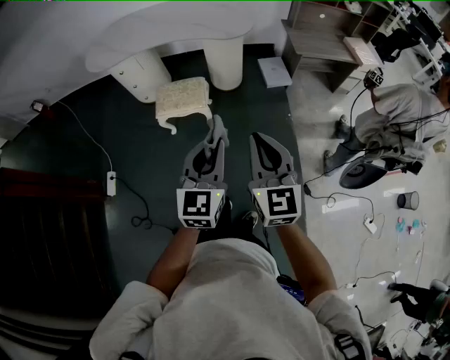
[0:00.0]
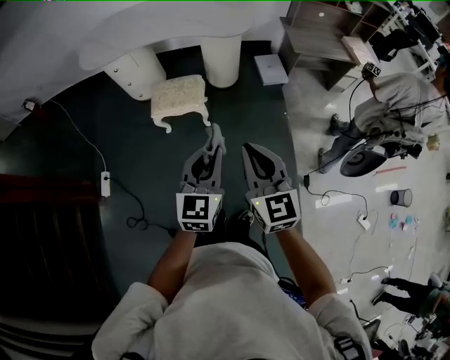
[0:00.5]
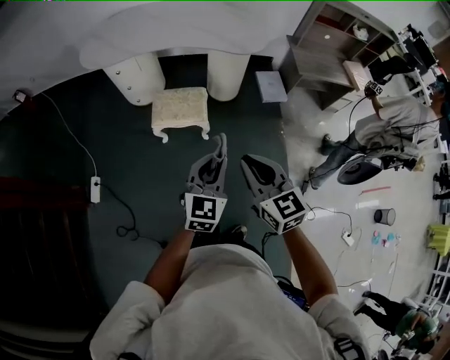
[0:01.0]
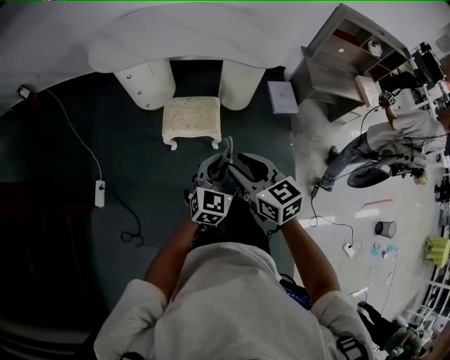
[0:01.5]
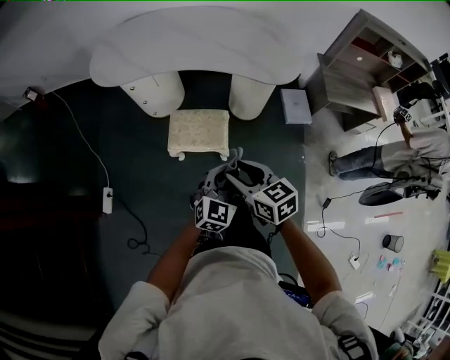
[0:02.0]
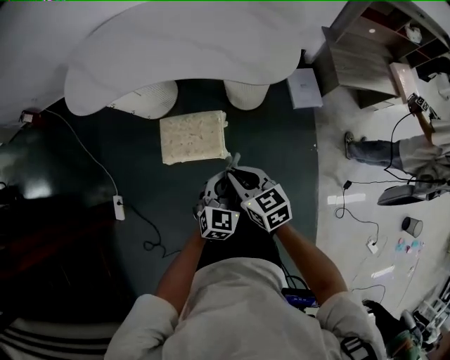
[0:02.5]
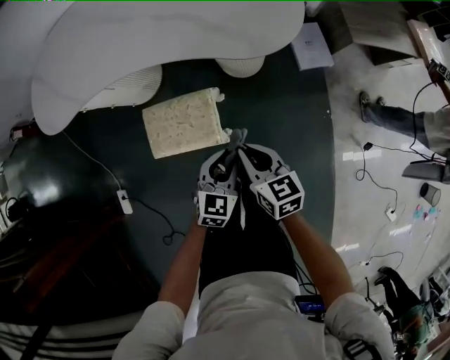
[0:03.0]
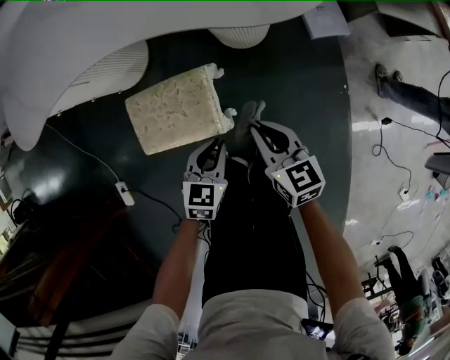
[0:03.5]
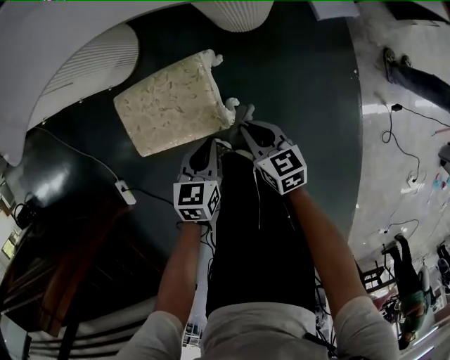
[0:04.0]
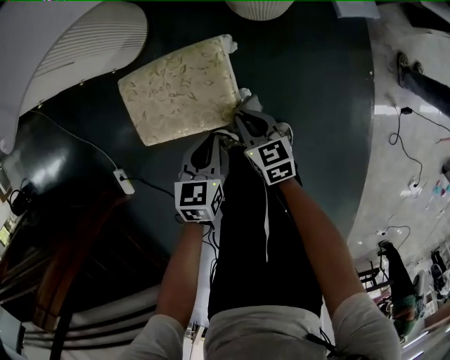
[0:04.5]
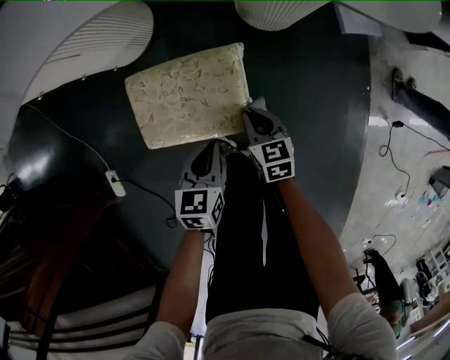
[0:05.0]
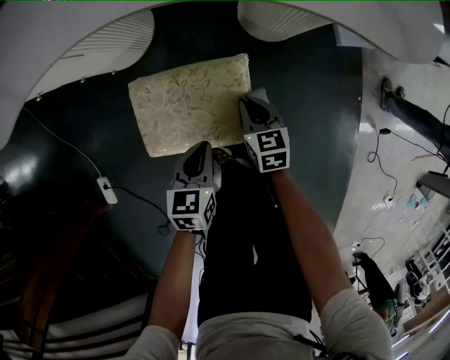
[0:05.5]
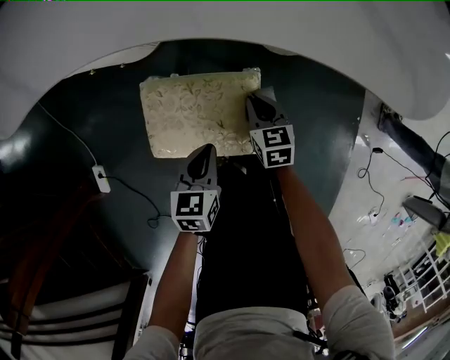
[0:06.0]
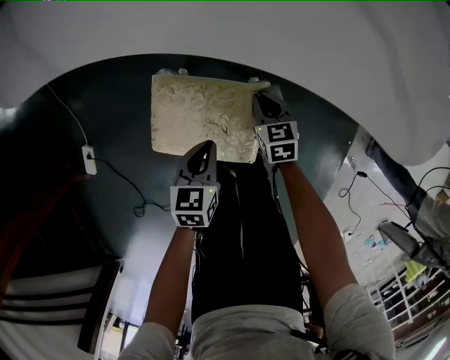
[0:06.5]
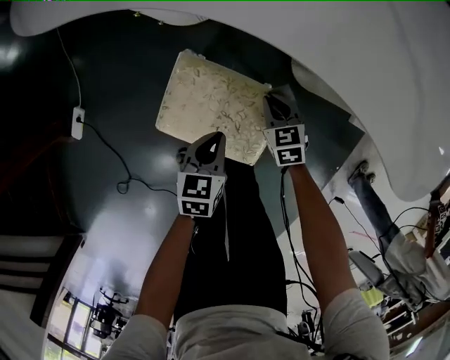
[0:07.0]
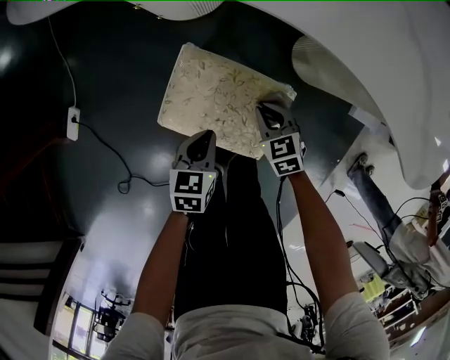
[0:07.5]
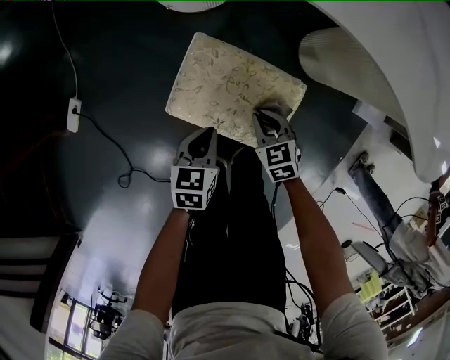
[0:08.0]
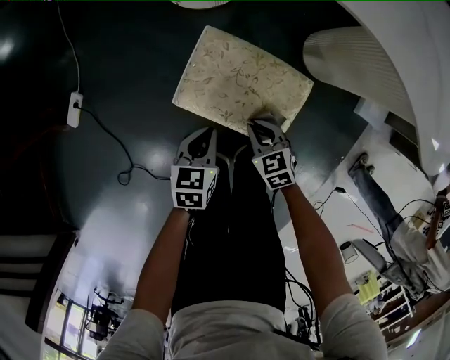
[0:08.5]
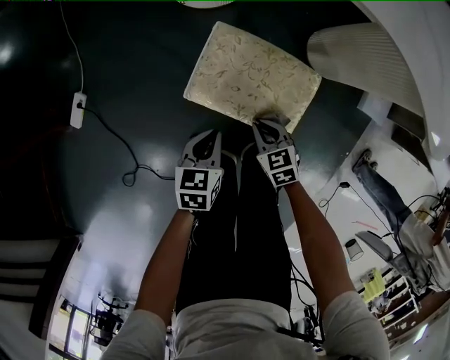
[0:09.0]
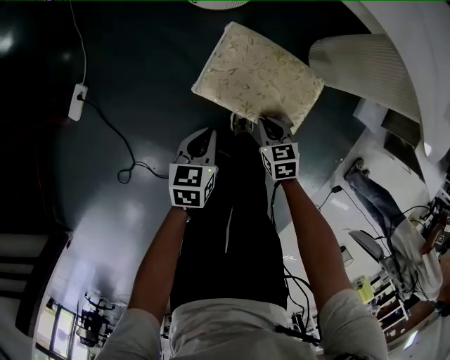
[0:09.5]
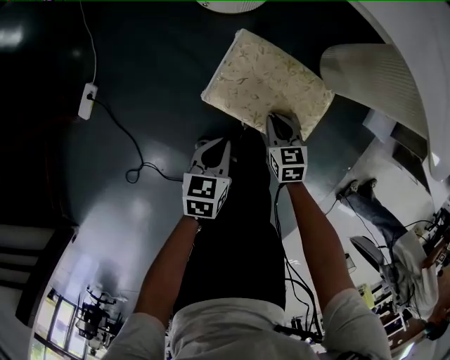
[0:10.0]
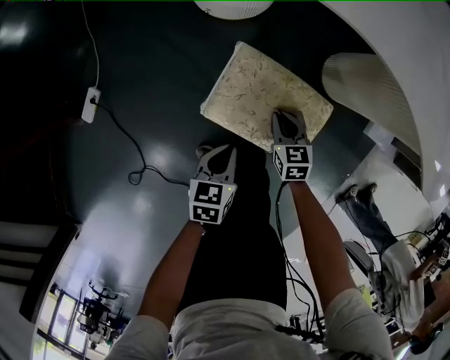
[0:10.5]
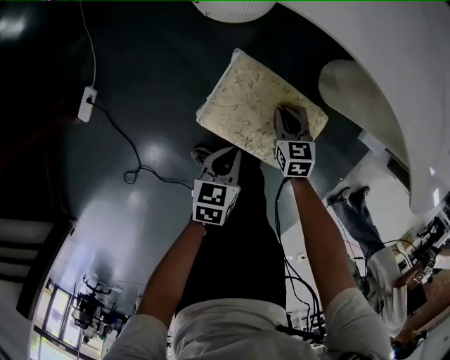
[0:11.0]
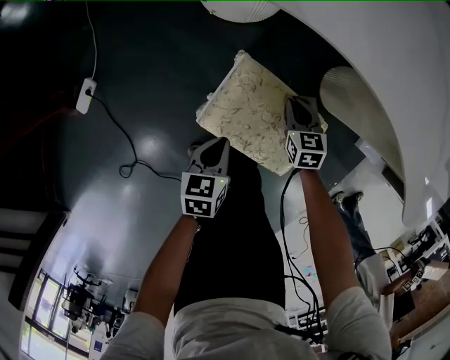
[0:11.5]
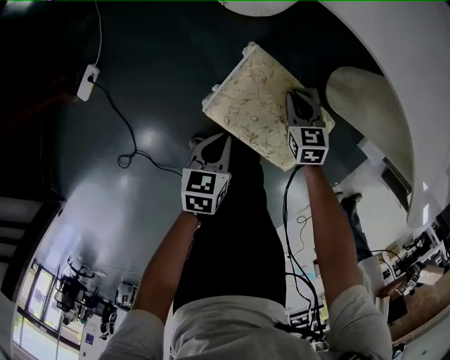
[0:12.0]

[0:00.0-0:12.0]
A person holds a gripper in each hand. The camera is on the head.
0:00.0 to 0:02.0: The right gripper travels forward, to the left and downward by approximately 40 cm, swivels about 40 degrees, and opens its fingers. The left gripper goes some 35 cm forward and downward.
0:02.0 to 0:04.0: The grippers both shift downward and forward by approximately 50 cm. The left gripper rotates roughly 40 degrees. Meanwhile the right gripper turns by about 20 degrees, and closes up.
0:04.0 to 0:06.0: The right gripper travels forward and to the left by some 20 cm; the left gripper goes about 15 cm to the left and forward.
0:06.0 to 0:08.0: The left gripper moves to the left, approximately 10 cm. The right gripper shifts some 10 cm to the left and backward, and swivels some 40 degrees.
0:08.0 to 0:10.0: The right gripper heads to the left, covering roughly 5 cm. Meanwhile the left gripper moves to the left and backward, about 10 cm.
0:10.0 to 0:12.0: The left gripper heads forward, covering about 5 cm; the right gripper travels forward by about 15 cm.

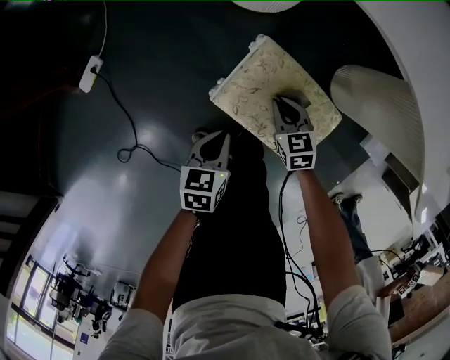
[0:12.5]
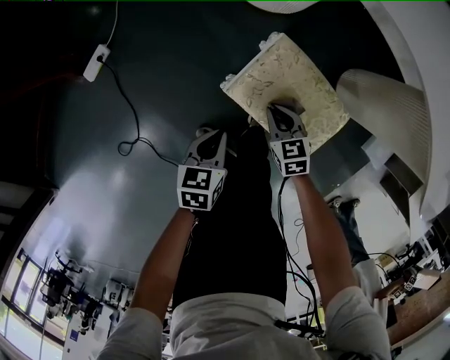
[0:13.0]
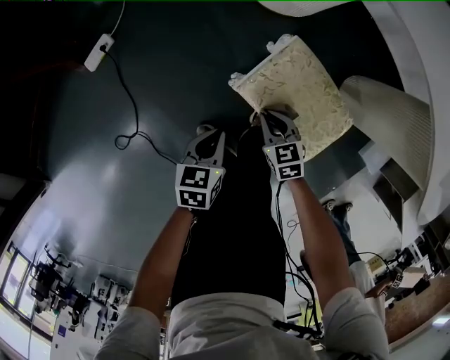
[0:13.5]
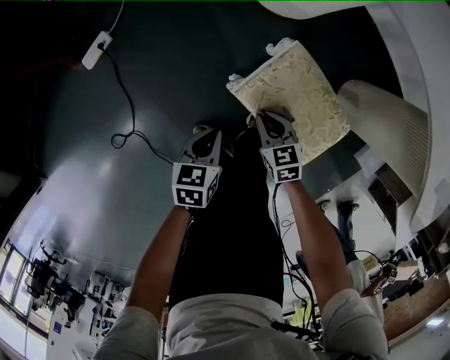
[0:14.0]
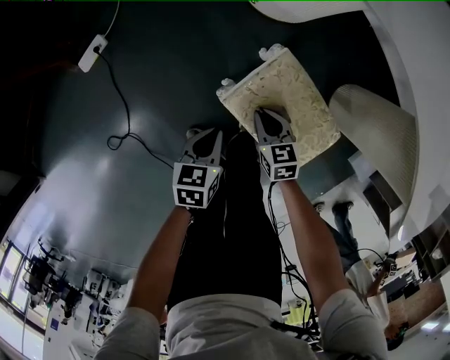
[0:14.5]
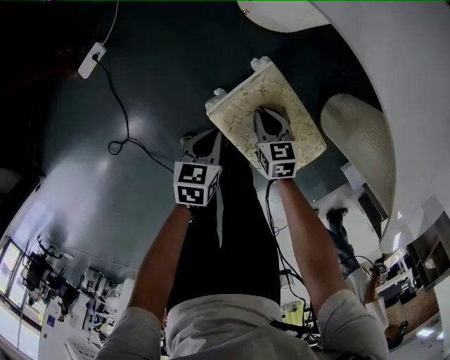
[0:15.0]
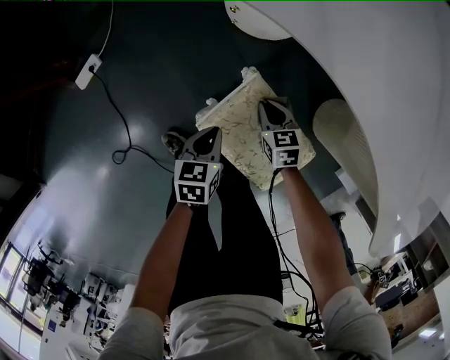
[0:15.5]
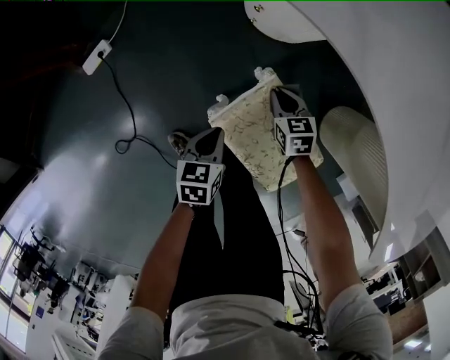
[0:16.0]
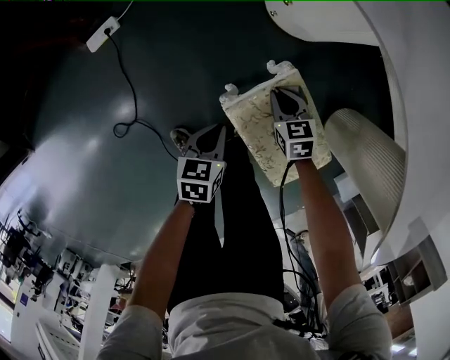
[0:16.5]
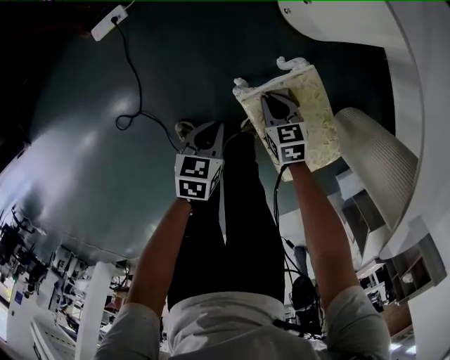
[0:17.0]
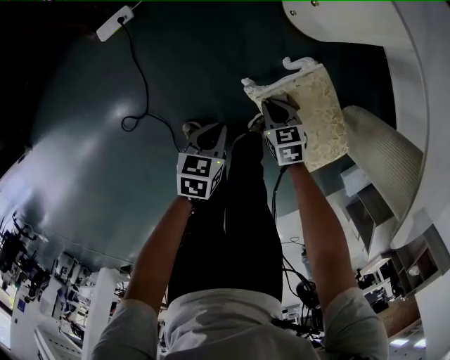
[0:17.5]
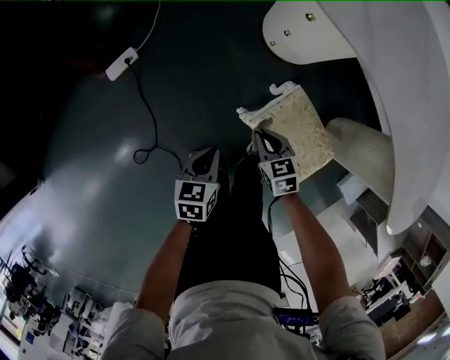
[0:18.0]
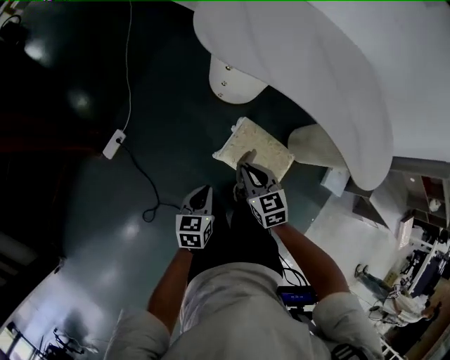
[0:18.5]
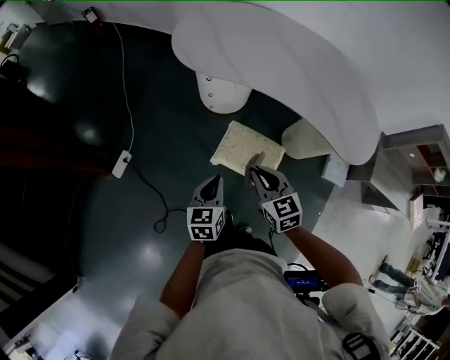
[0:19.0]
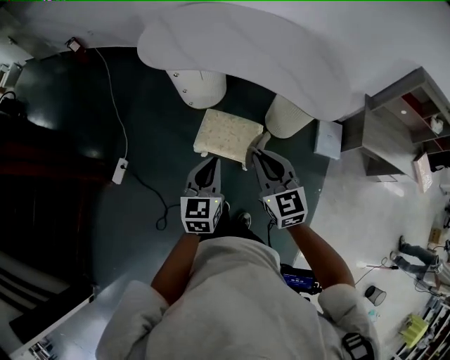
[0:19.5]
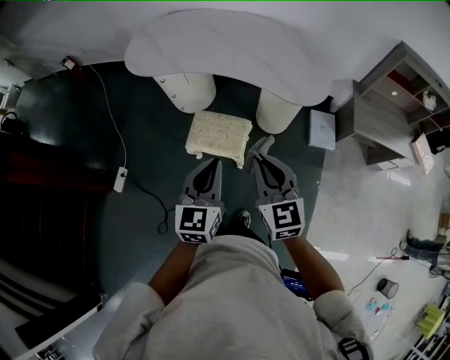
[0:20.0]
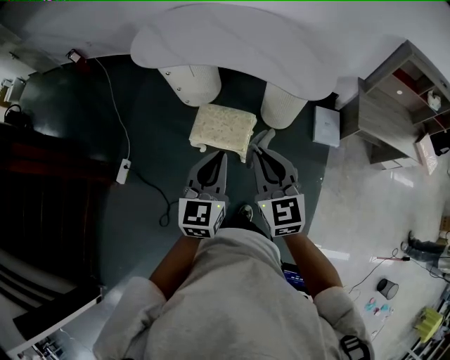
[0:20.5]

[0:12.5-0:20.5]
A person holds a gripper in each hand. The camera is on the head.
0:12.5 to 0:14.5: The right gripper shifts about 10 cm to the left.
0:14.5 to 0:16.5: The right gripper shifts approximately 10 cm forward.
0:16.5 to 0:18.5: The grippers both shift upward by about 35 cm. The right gripper changes its angle by some 20 degrees; the left gripper rotates approximately 20 degrees.
0:18.5 to 0:20.5: The left gripper moves to the right, upward and backward, some 40 cm, and changes its angle by approximately 40 degrees. Meanwhile the right gripper goes some 50 cm to the right, backward and upward, and swivels roughly 40 degrees.

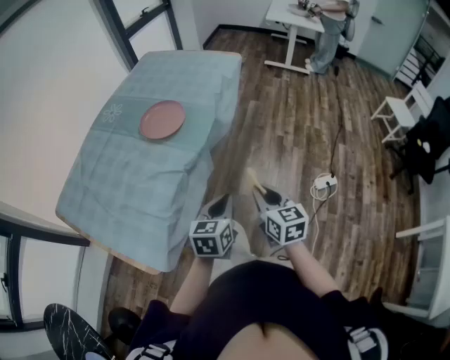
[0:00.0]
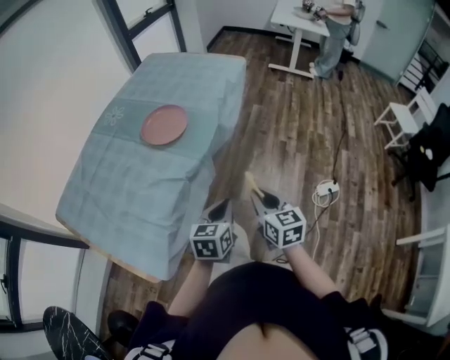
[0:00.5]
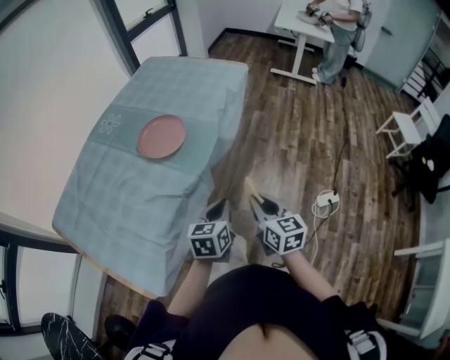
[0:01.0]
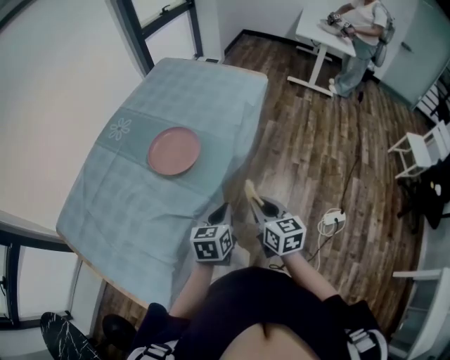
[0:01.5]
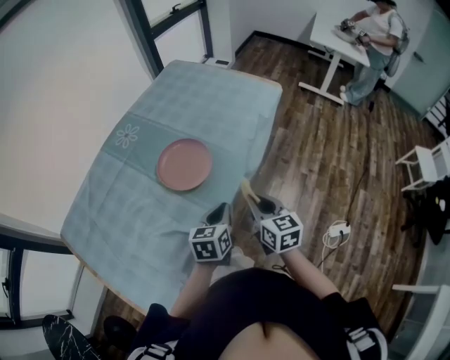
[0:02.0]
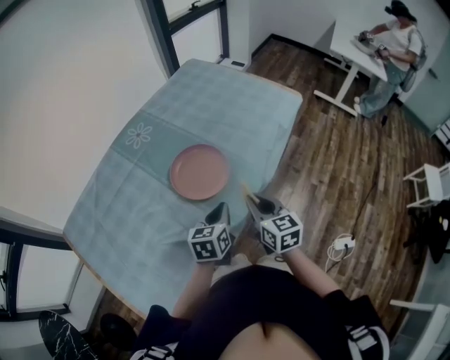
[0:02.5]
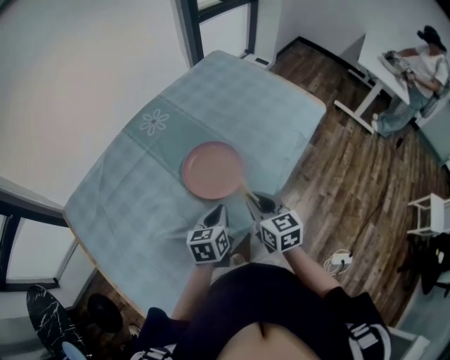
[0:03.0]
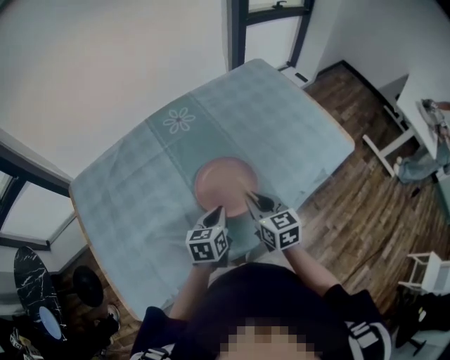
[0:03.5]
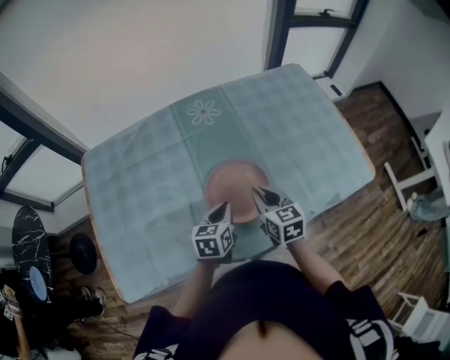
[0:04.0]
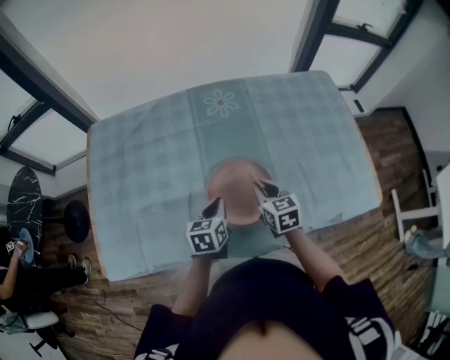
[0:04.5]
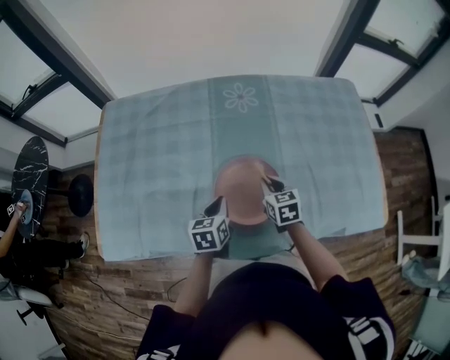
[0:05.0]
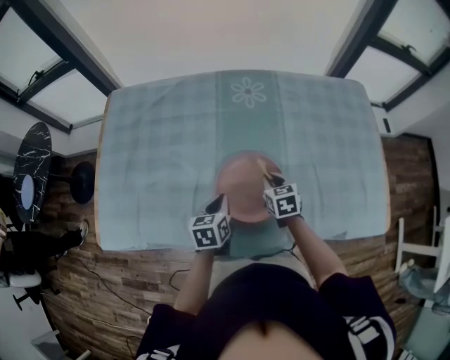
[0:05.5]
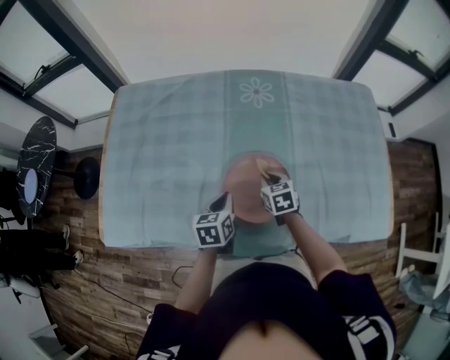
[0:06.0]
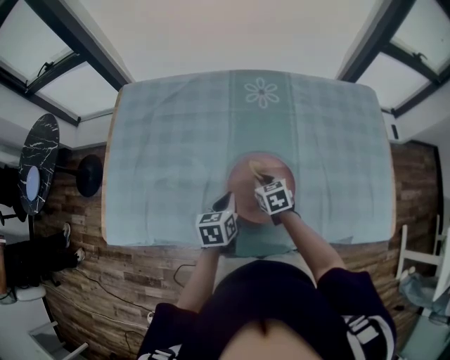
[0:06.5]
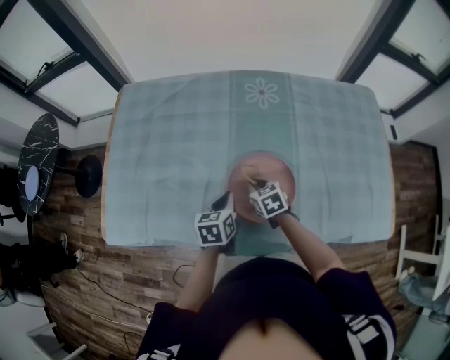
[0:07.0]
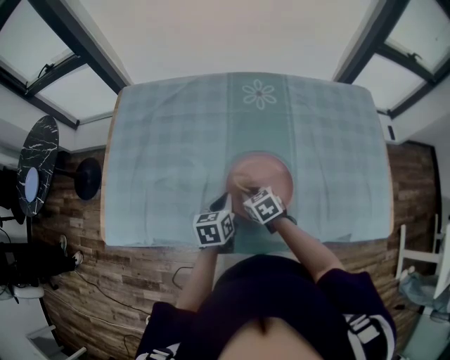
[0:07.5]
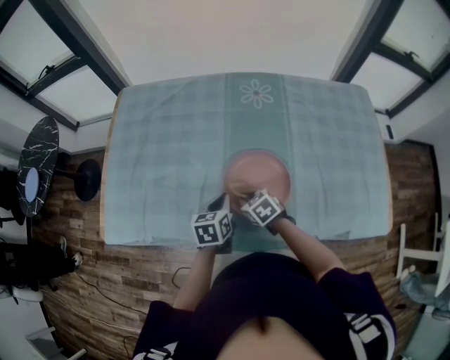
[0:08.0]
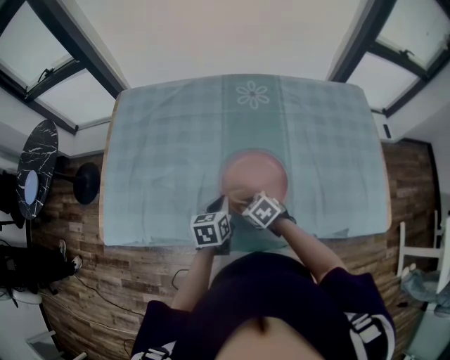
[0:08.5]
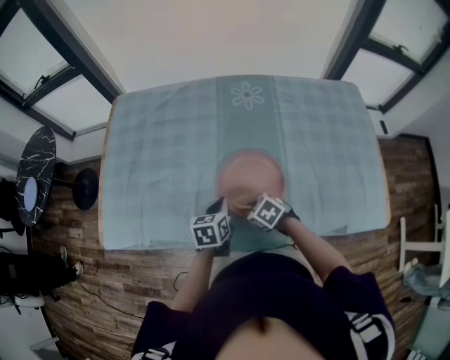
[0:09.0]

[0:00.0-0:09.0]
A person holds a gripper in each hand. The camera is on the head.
0:00.0 to 0:02.0: The two grippers go about 30 cm forward.
0:02.0 to 0:04.5: The left gripper changes place by roughly 25 cm, and rotates about 50 degrees; the right gripper shifts by roughly 35 cm, and rotates approximately 50 degrees.
0:04.5 to 0:07.0: The right gripper goes approximately 15 cm downward and to the left, and rotates about 30 degrees.
0:07.0 to 0:09.0: The right gripper moves backward, about 15 cm, and swivels approximately 30 degrees.
